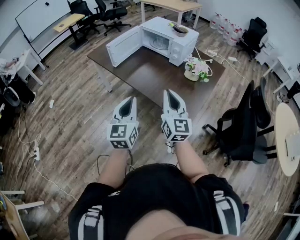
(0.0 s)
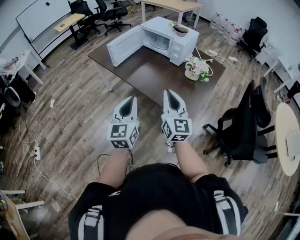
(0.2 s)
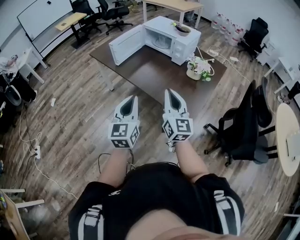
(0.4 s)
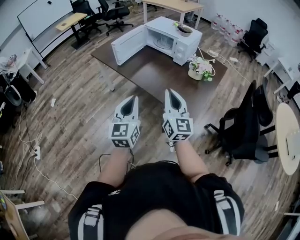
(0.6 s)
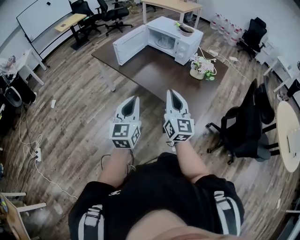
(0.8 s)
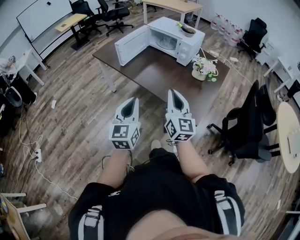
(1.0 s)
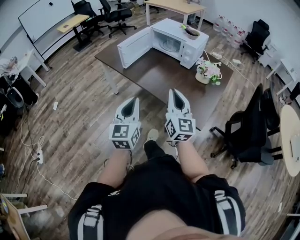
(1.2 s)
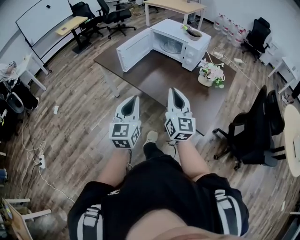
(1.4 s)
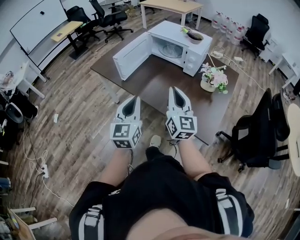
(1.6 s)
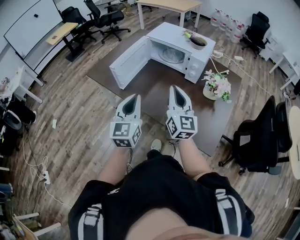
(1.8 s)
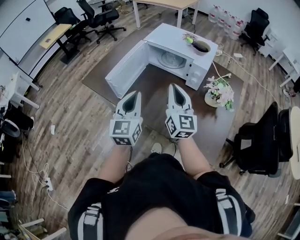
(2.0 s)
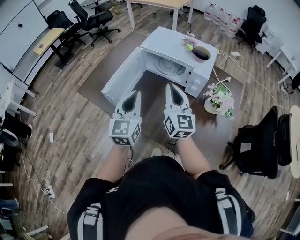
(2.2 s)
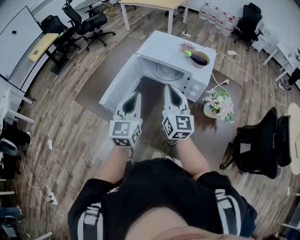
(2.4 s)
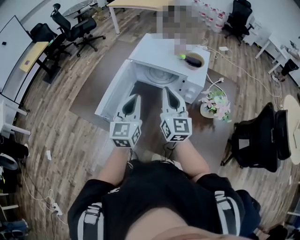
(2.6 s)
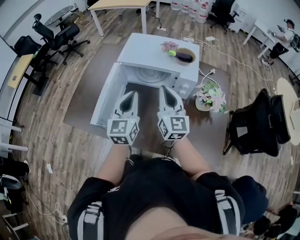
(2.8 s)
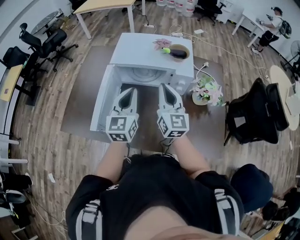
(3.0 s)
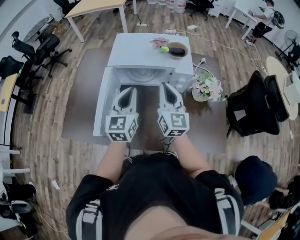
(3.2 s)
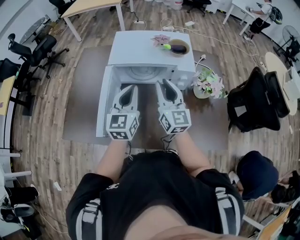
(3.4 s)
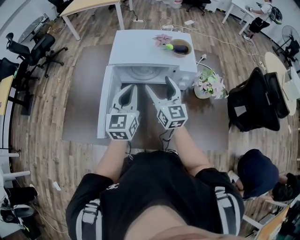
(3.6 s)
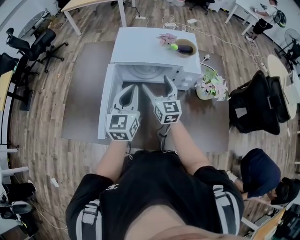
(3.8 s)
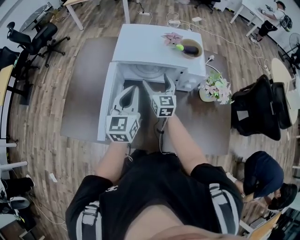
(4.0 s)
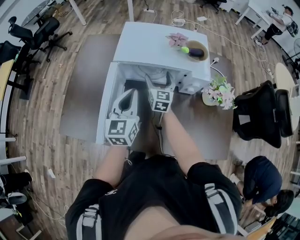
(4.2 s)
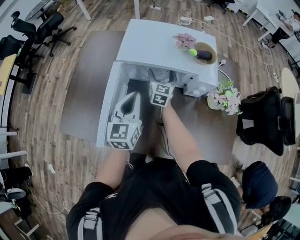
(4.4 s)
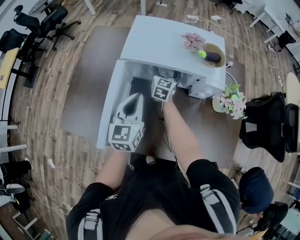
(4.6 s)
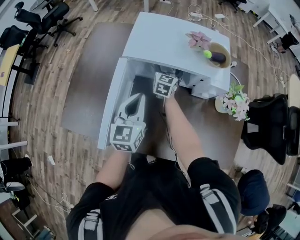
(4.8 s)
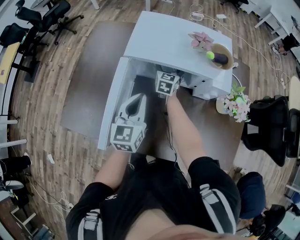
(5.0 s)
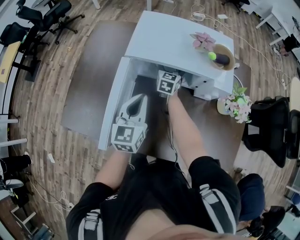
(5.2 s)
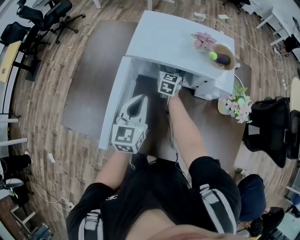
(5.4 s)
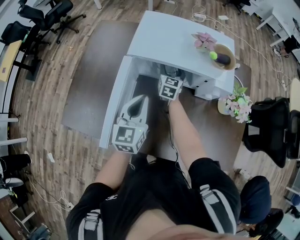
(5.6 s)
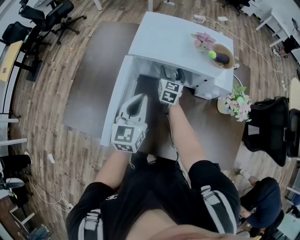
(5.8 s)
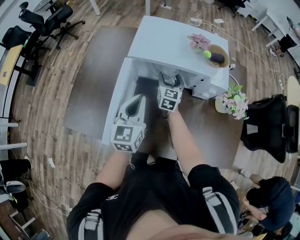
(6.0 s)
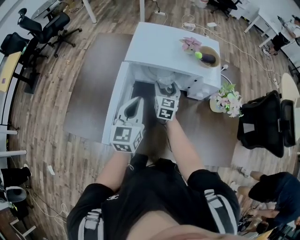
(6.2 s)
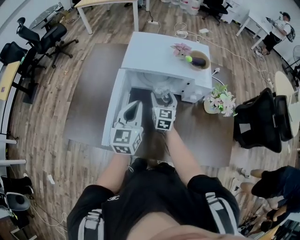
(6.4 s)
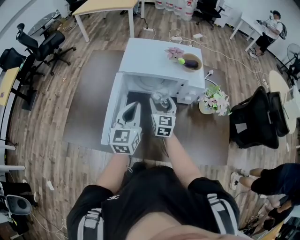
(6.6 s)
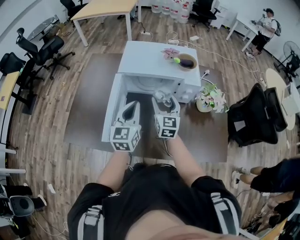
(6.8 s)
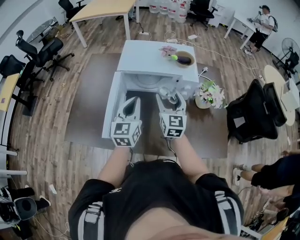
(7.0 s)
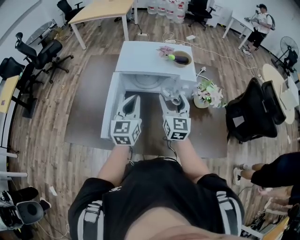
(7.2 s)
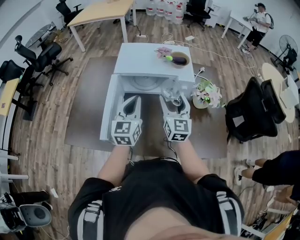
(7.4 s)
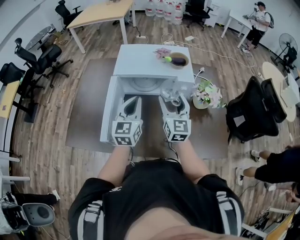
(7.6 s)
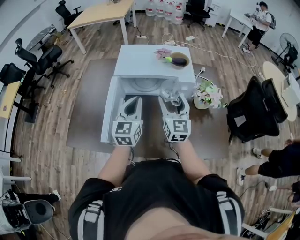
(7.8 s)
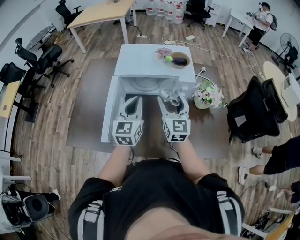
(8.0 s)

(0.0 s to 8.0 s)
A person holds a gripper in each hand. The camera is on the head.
0.0 s - 1.6 s: Both grippers travel together forward and to the left, approximately 20 cm.
1.6 s - 3.2 s: The right gripper moves about 35 cm, and changes its angle by about 30 degrees. The left gripper ends up about 50 cm from where it was, and swivels some 30 degrees.
3.2 s - 4.8 s: The right gripper is displaced forward and downward by approximately 35 cm, changes its angle by approximately 30 degrees, and opens up. The left gripper travels downward, forward and to the left by roughly 15 cm.
4.8 s - 6.4 s: The right gripper is displaced backward by some 15 cm. The left gripper ends up about 5 cm from where it was.
6.4 s - 8.0 s: The left gripper shifts by about 5 cm, while the right gripper moves upward, backward and to the right, about 20 cm.

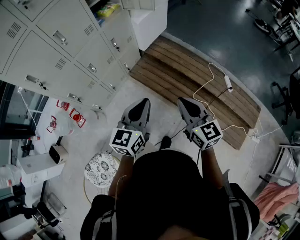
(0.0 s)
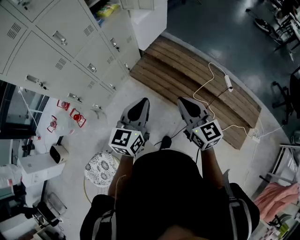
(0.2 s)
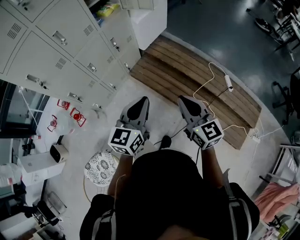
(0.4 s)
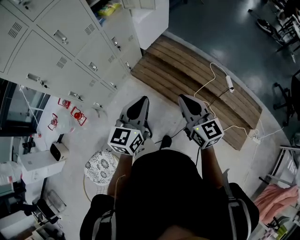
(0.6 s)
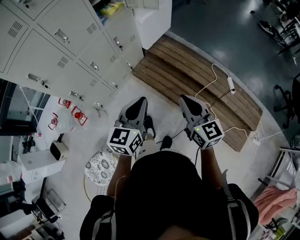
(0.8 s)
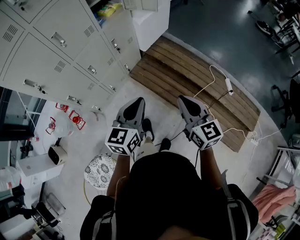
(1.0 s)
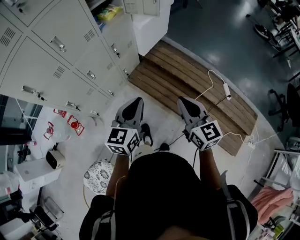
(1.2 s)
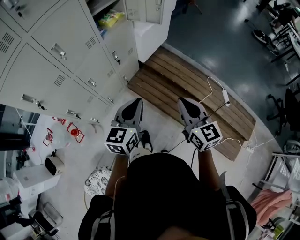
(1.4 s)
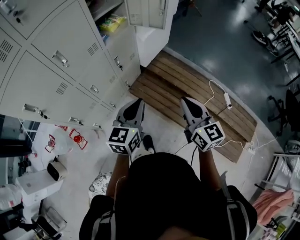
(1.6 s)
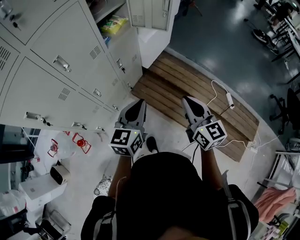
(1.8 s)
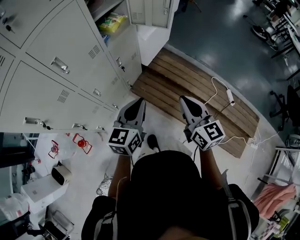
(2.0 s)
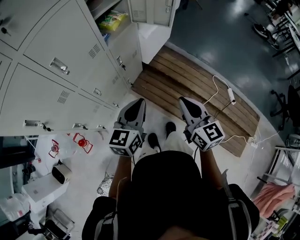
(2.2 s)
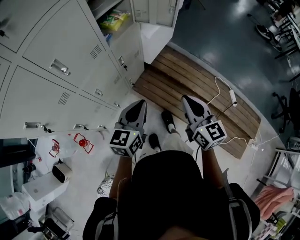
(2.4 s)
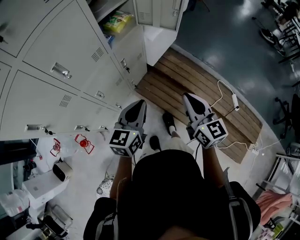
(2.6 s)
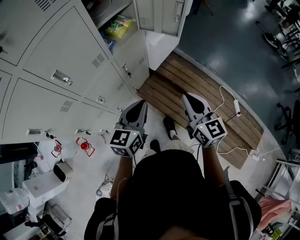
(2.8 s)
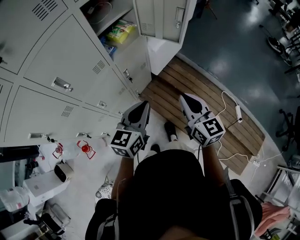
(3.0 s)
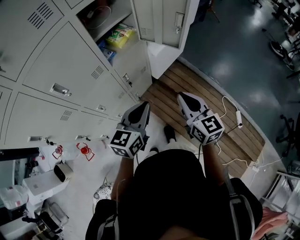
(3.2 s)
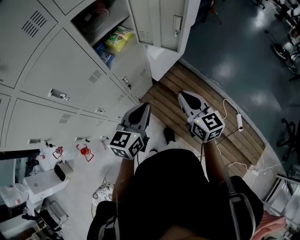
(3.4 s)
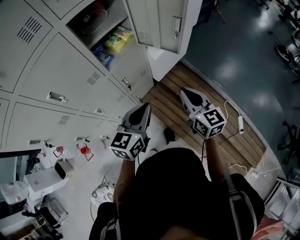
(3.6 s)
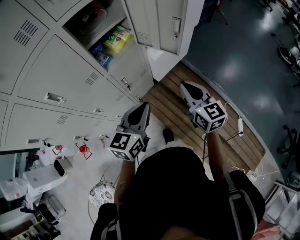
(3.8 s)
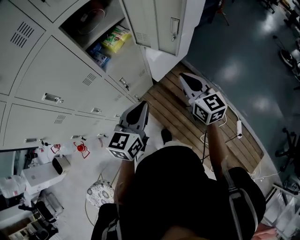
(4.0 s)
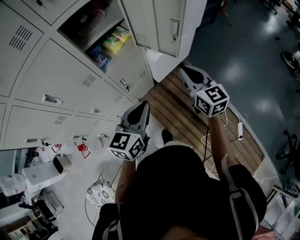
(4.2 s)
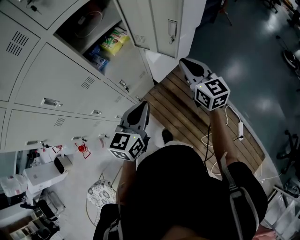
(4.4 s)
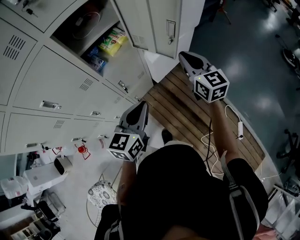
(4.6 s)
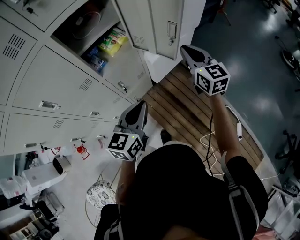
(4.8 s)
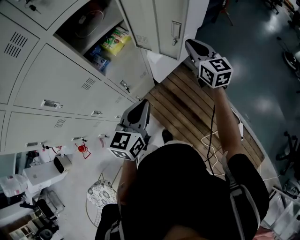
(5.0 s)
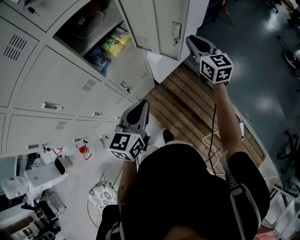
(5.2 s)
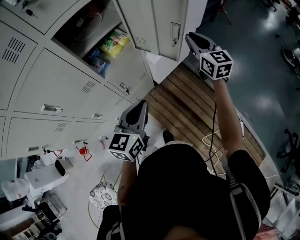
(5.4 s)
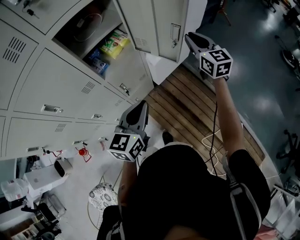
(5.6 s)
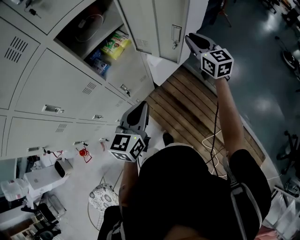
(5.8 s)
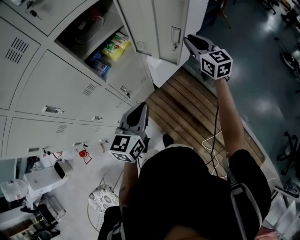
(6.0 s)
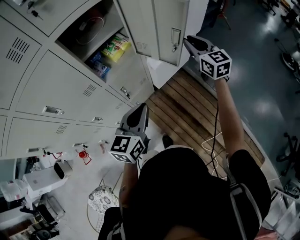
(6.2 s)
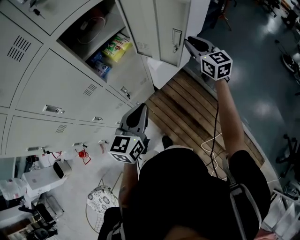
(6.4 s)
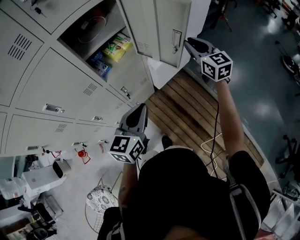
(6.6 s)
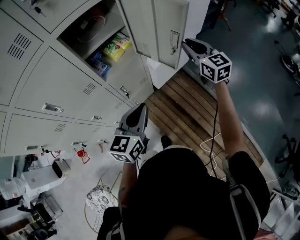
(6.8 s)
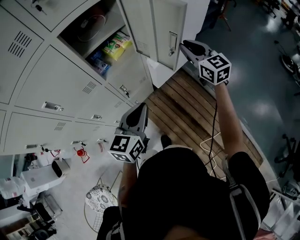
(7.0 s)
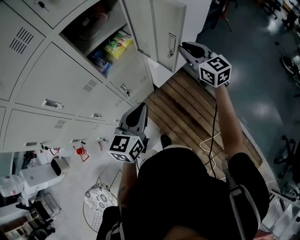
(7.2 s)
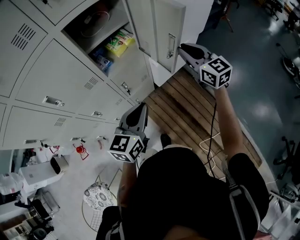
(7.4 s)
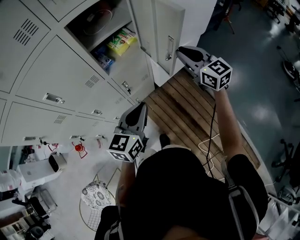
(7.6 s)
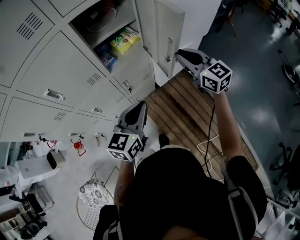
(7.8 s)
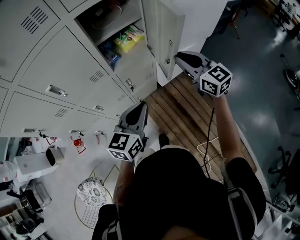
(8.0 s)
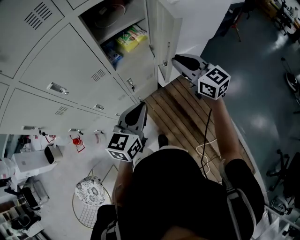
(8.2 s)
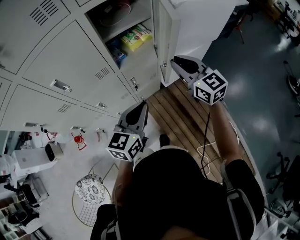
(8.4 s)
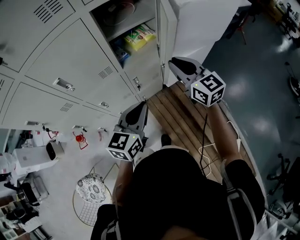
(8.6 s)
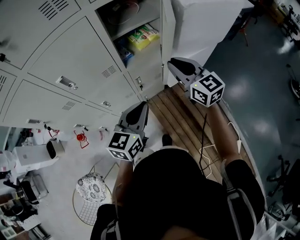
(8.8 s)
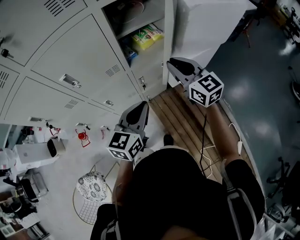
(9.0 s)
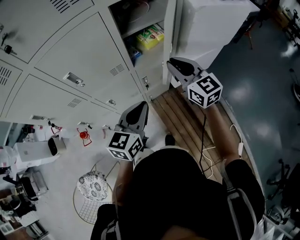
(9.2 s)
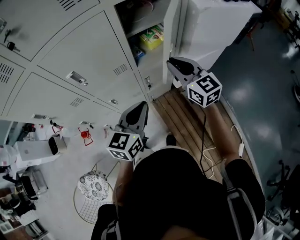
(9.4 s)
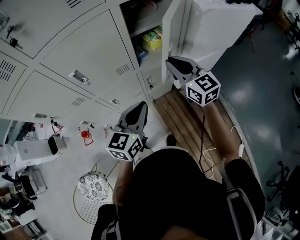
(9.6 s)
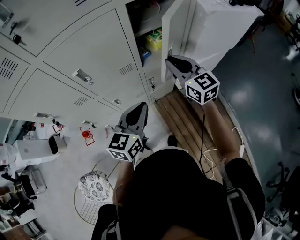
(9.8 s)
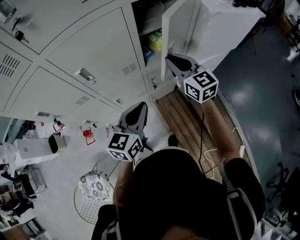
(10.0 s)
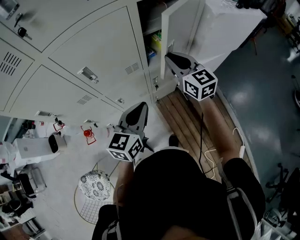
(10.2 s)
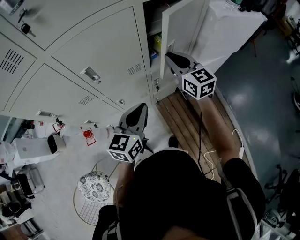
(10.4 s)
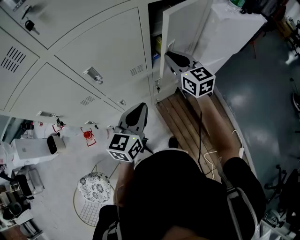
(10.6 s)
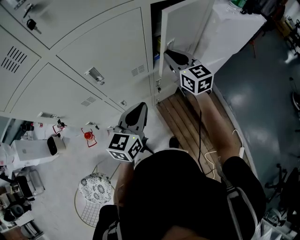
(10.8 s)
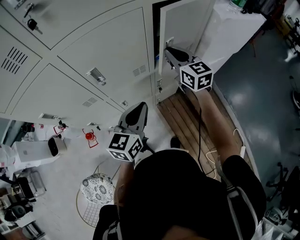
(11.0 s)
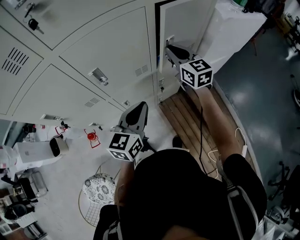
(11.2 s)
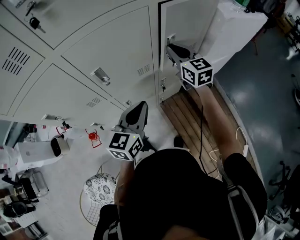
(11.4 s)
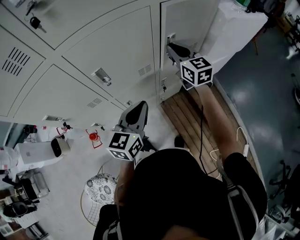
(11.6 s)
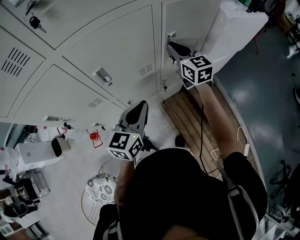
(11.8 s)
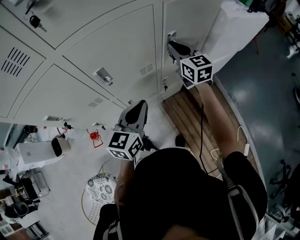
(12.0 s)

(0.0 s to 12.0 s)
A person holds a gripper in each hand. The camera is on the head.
0.0 s - 1.6 s: The left gripper travels forward and to the left by roughly 20 cm; the right gripper heads forward, covering approximately 20 cm.
1.6 s - 3.0 s: Both grippers travel together forward, roughly 15 cm.
3.0 s - 4.4 s: The right gripper moves forward and to the right, approximately 25 cm. Meanwhile the left gripper shifts about 15 cm forward and to the right.
4.4 s - 6.0 s: The right gripper heads forward, covering some 10 cm.
6.0 s - 7.6 s: The right gripper heads to the left and backward, covering approximately 10 cm.
7.6 s - 9.0 s: The left gripper shifts some 10 cm to the left. The right gripper heads to the left, covering about 15 cm.
9.0 s - 10.4 s: The left gripper shifts roughly 10 cm to the left. Meanwhile the right gripper heads to the left and forward, covering roughly 15 cm.
10.4 s - 12.0 s: The left gripper is displaced to the left by roughly 5 cm. Meanwhile the right gripper heads forward, covering about 5 cm.

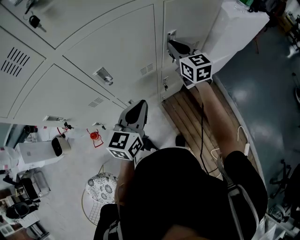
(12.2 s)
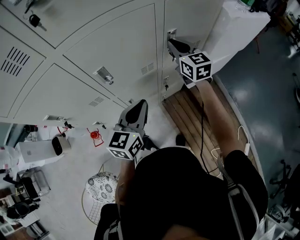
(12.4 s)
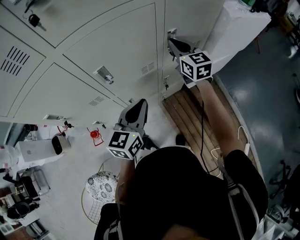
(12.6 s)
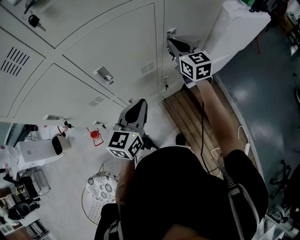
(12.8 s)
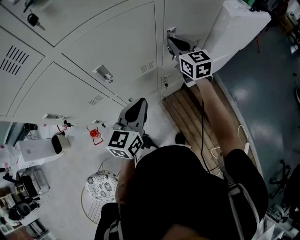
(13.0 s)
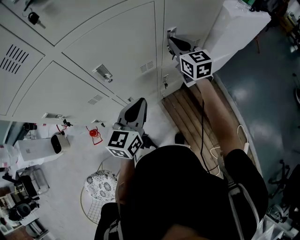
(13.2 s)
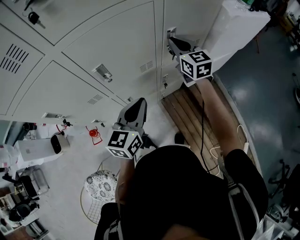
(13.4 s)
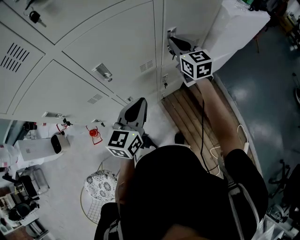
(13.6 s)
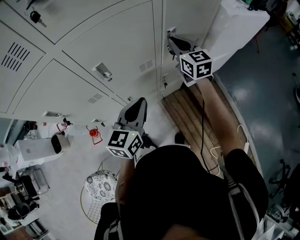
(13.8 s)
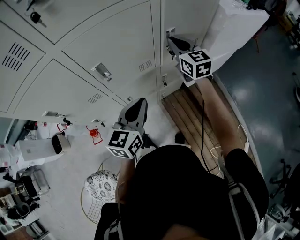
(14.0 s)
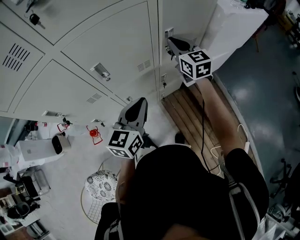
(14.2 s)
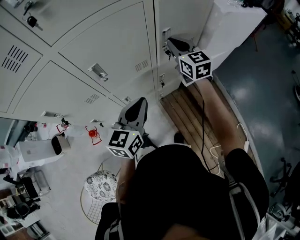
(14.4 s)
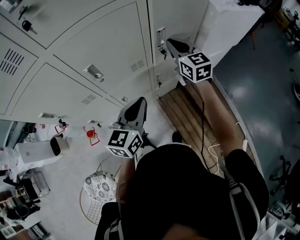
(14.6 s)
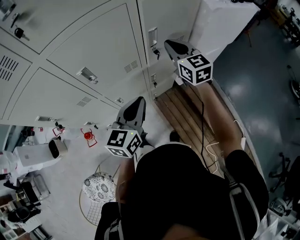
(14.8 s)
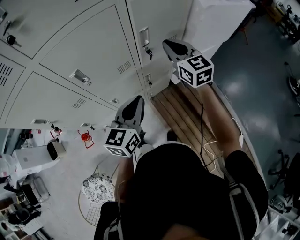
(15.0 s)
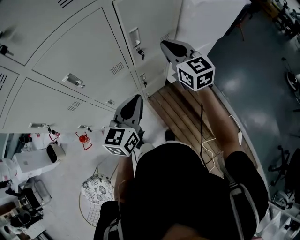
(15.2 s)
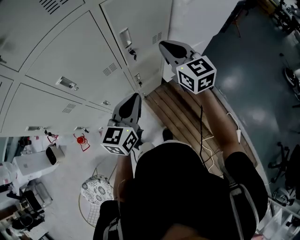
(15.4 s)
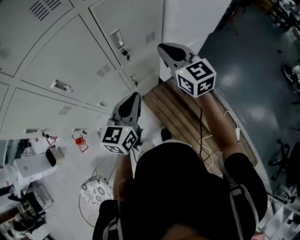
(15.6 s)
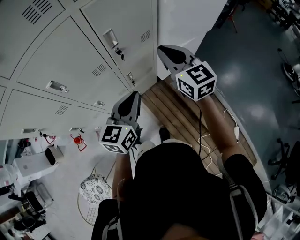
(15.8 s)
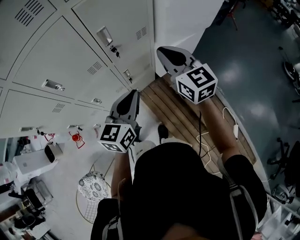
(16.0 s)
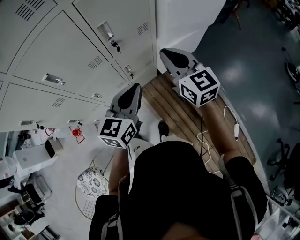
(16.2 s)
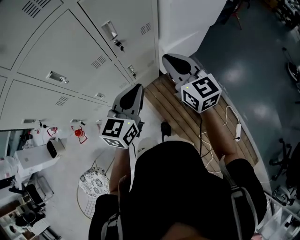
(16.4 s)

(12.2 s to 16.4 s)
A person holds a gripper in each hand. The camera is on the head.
12.2 s - 13.6 s: Both grippers stay put.
13.6 s - 15.0 s: The left gripper heads to the right, covering about 10 cm; the right gripper travels to the right and backward by about 10 cm.
15.0 s - 16.4 s: The right gripper goes roughly 15 cm backward and to the right, while the left gripper moves to the right, approximately 15 cm.
